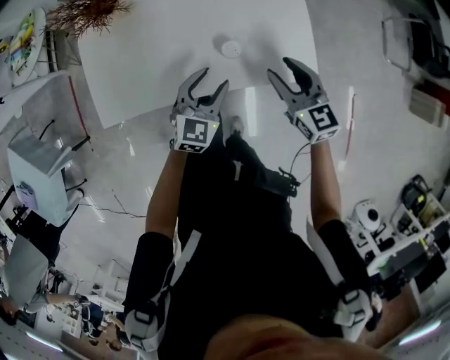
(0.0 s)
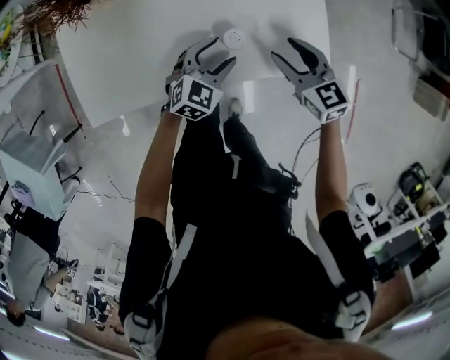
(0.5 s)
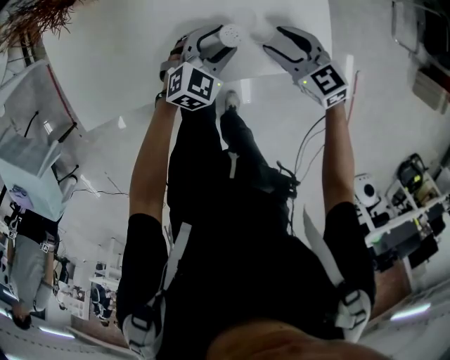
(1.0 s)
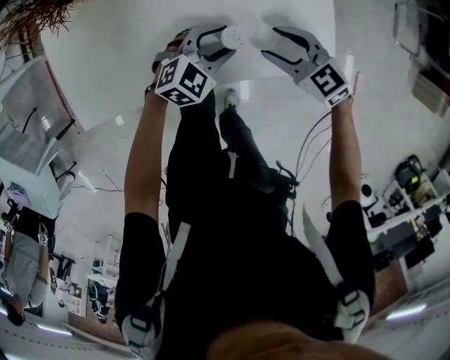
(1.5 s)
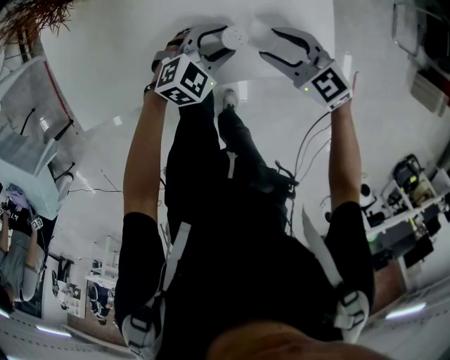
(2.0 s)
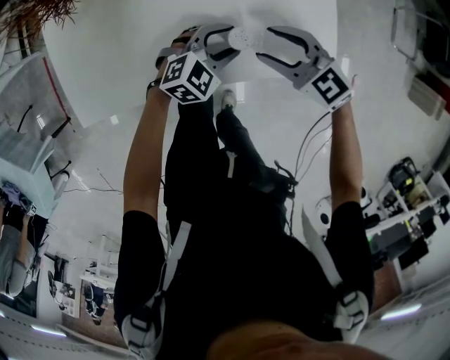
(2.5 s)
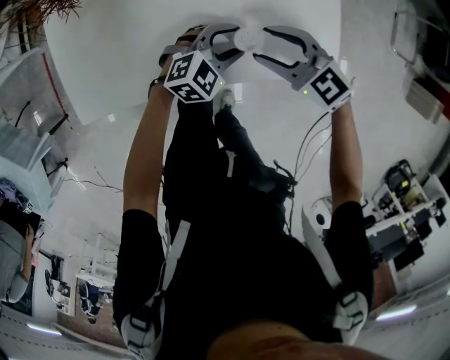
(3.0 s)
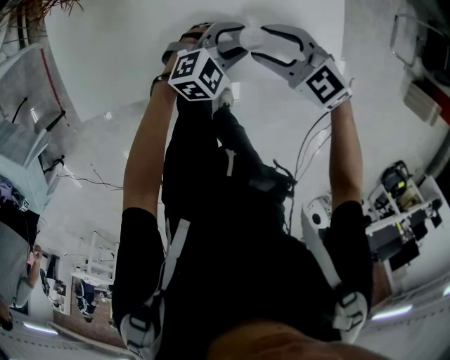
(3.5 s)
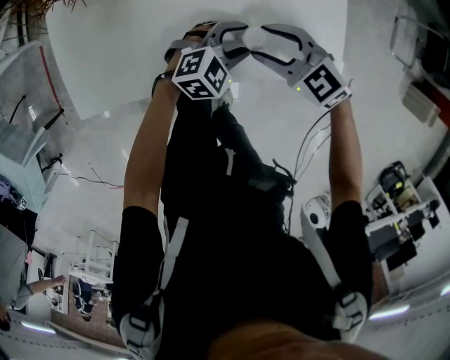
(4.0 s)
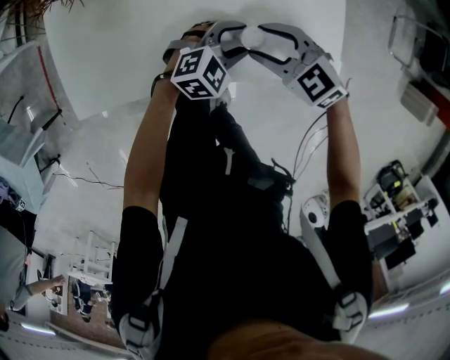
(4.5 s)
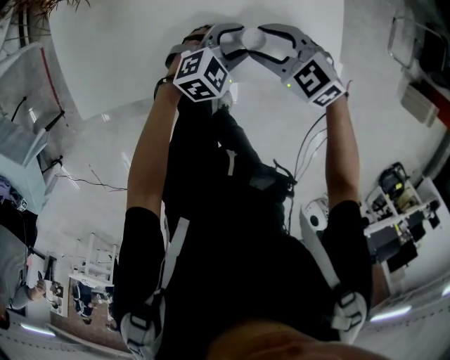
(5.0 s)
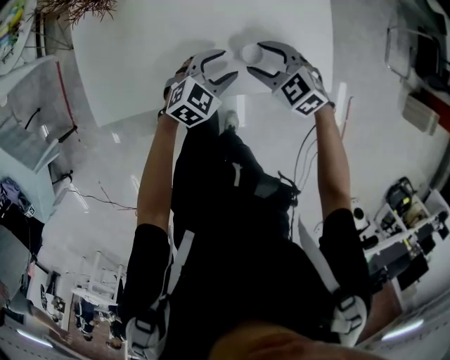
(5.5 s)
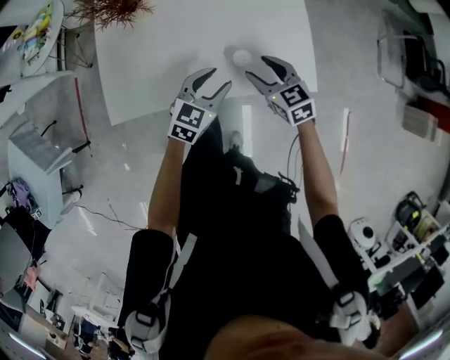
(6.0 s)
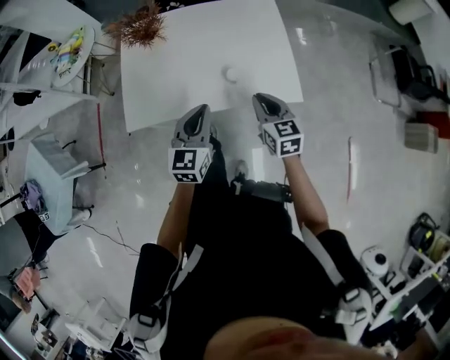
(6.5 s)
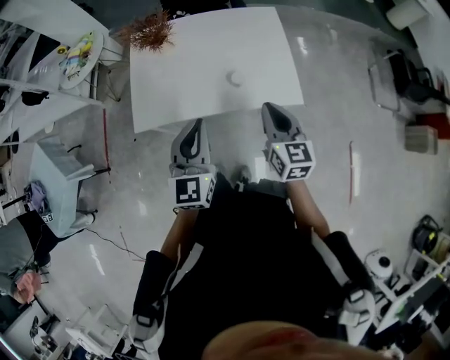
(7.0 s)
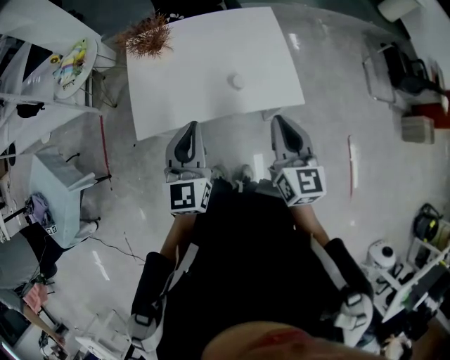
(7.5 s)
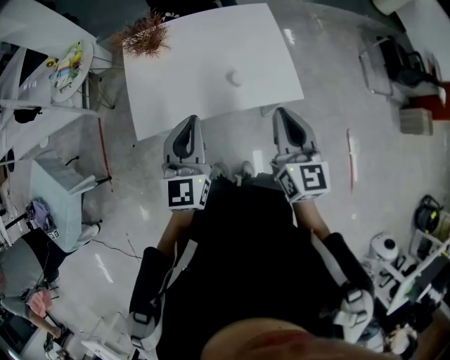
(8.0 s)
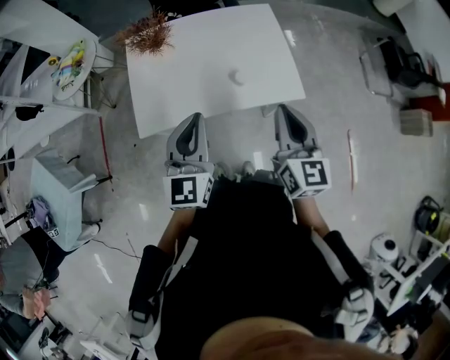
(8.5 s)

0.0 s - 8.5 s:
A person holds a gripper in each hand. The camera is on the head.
0.0 s - 2.0 s: The left gripper travels downward, forward and to the right by some 15 cm, and changes its angle by approximately 30 degrees. The right gripper moves downward, some 10 cm, and changes its angle by roughly 30 degrees.
2.0 s - 4.0 s: The right gripper changes place by some 5 cm.
4.0 s - 6.5 s: The right gripper travels upward by about 15 cm, turns by approximately 50 degrees, and closes up; the left gripper is displaced upward by approximately 25 cm, rotates about 60 degrees, and closes its fingers.
6.5 s - 8.5 s: The left gripper is displaced upward and to the left by approximately 15 cm; the right gripper moves upward and backward, about 20 cm, and turns by about 20 degrees.

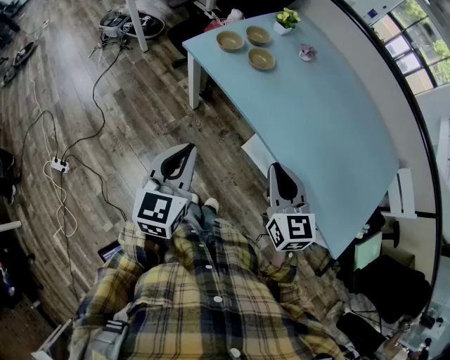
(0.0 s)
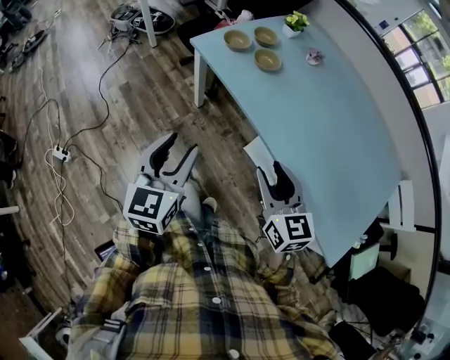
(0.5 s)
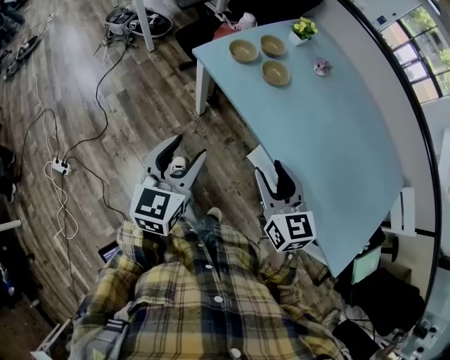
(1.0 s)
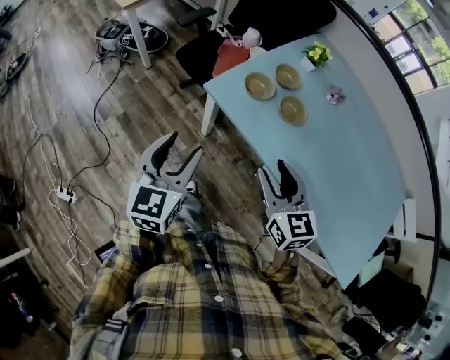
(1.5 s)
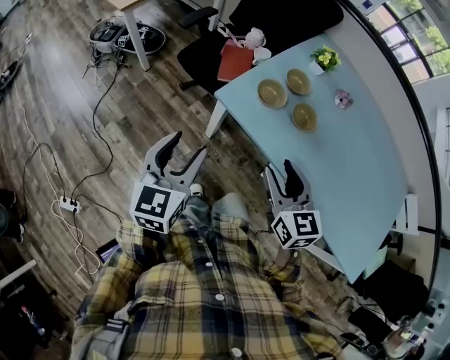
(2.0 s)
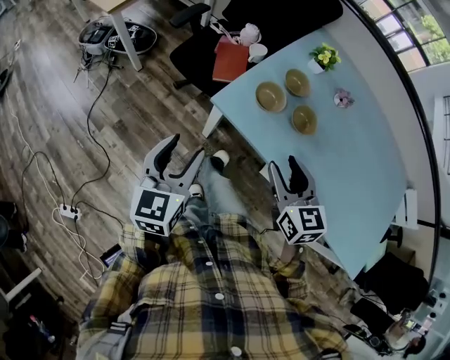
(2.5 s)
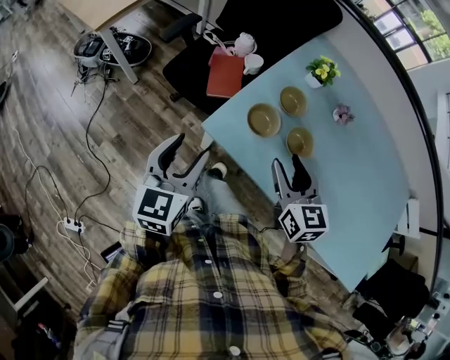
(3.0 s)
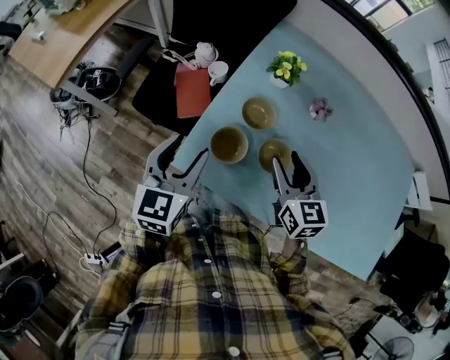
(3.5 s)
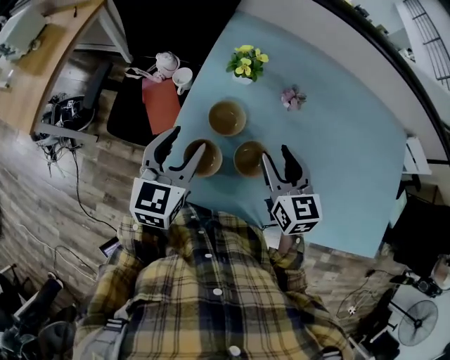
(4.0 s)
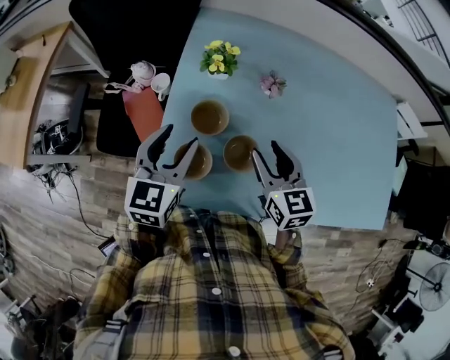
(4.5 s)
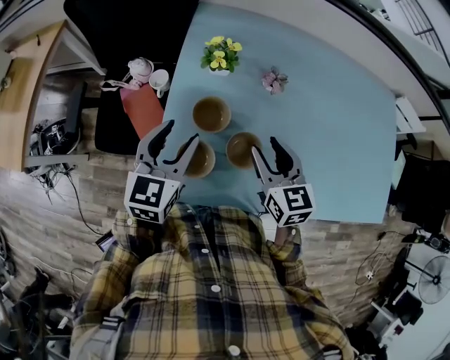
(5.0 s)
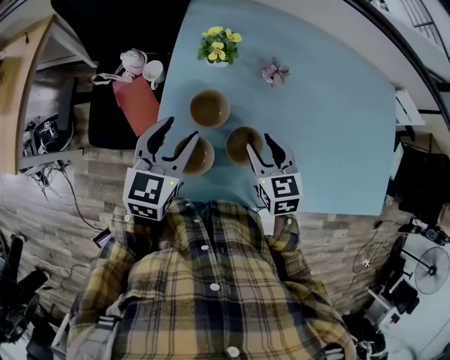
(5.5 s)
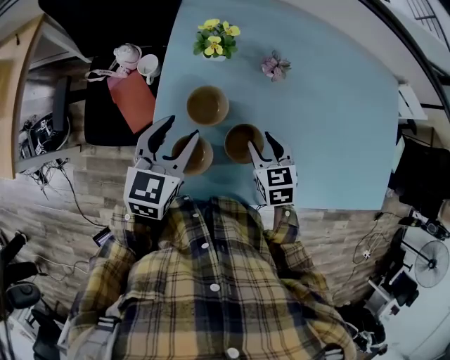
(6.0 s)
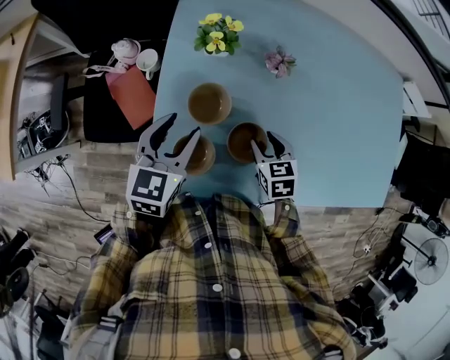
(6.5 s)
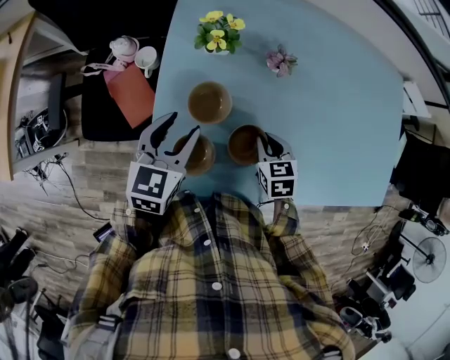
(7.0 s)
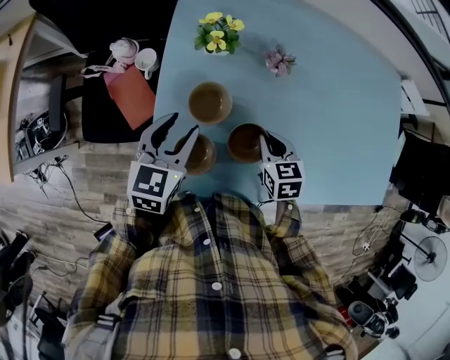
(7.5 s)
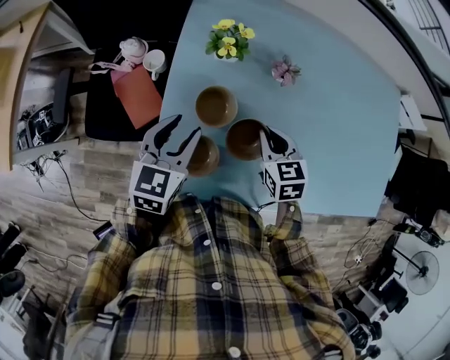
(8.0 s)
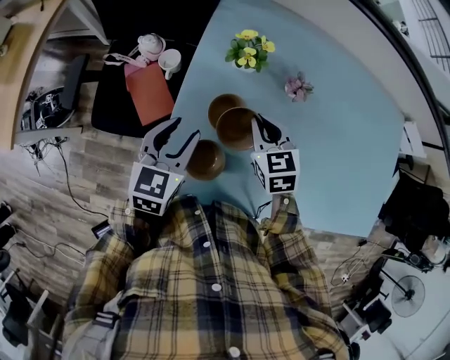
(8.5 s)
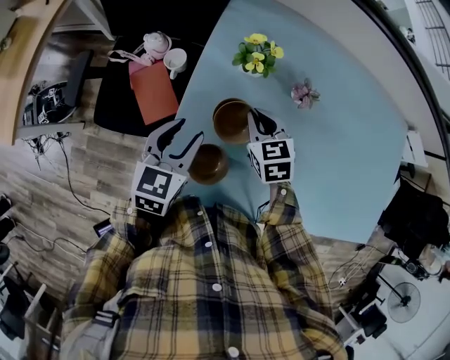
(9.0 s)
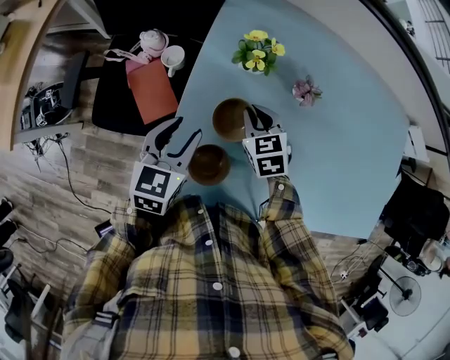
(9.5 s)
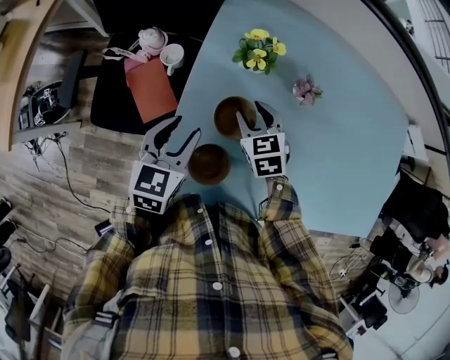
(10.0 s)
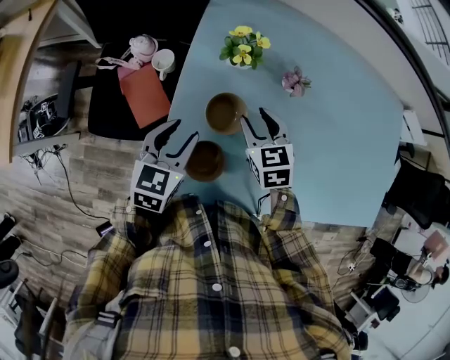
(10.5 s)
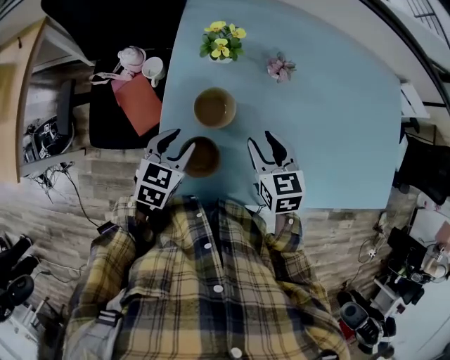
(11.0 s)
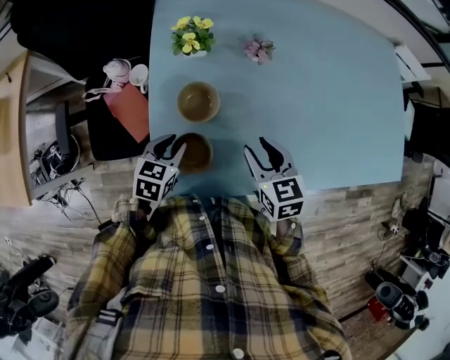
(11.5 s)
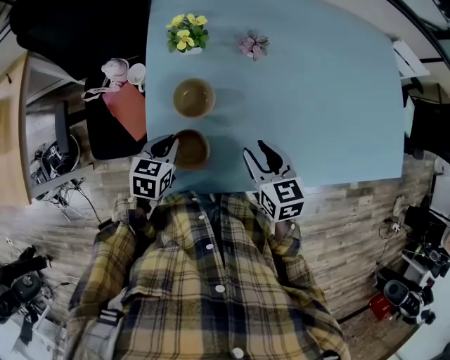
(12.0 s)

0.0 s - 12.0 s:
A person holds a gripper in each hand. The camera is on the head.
0.0 s - 2.0 s: Both grippers travel together forward and to the left, roughly 35 cm. The right gripper opens. Meanwhile the left gripper opens.
2.0 s - 4.0 s: The left gripper shifts by about 35 cm, and turns by roughly 30 degrees. The right gripper shifts by approximately 30 cm, and turns by roughly 20 degrees.
4.0 s - 6.0 s: The left gripper is displaced downward by about 5 cm, while the right gripper travels downward by some 10 cm, and rotates roughly 30 degrees.
6.0 s - 8.0 s: The right gripper closes up.
8.0 s - 10.0 s: The right gripper heads to the left and forward, covering approximately 15 cm, and opens. The left gripper moves roughly 5 cm.
10.0 s - 12.0 s: The right gripper is displaced backward and to the right by approximately 20 cm, and changes its angle by approximately 30 degrees. Meanwhile the left gripper shifts some 10 cm downward, backward and to the right, turns by approximately 20 degrees, and closes.

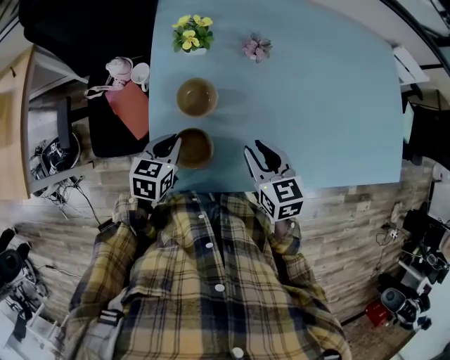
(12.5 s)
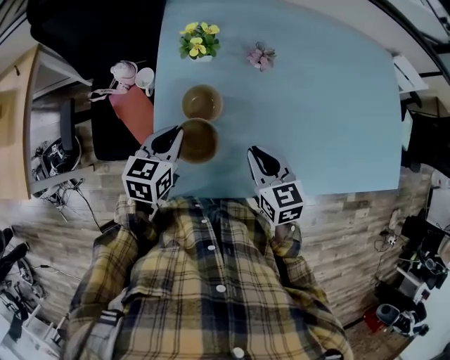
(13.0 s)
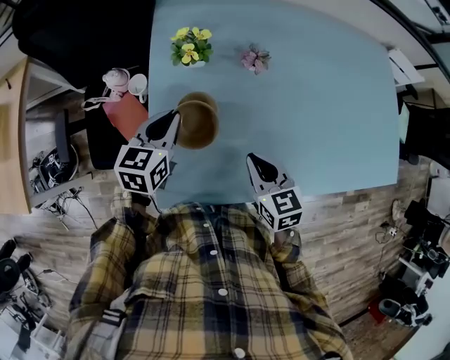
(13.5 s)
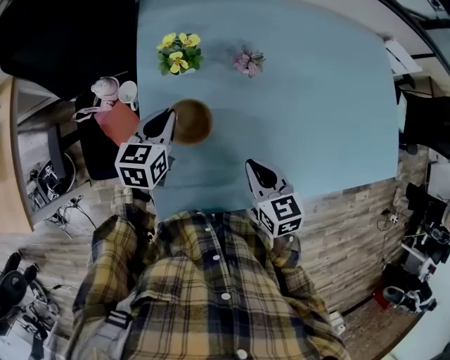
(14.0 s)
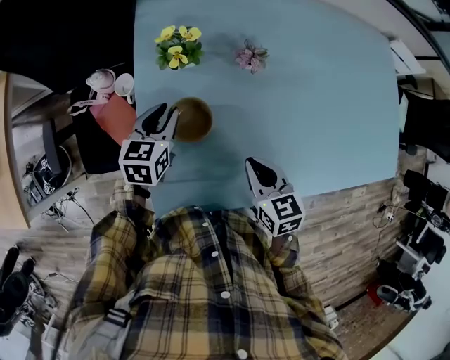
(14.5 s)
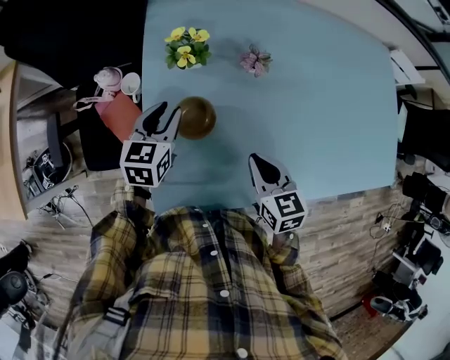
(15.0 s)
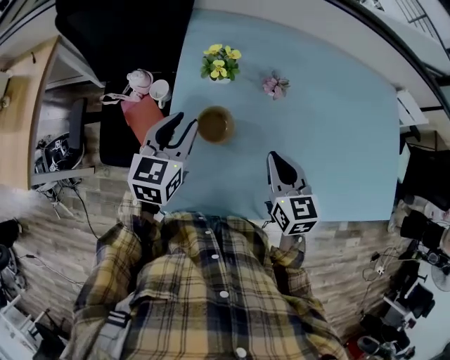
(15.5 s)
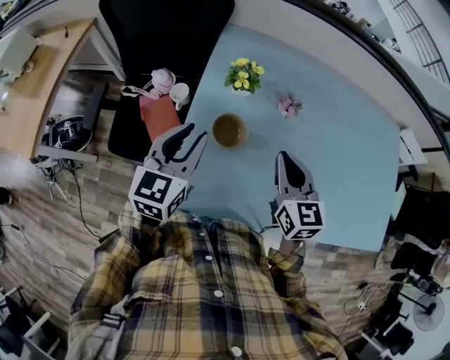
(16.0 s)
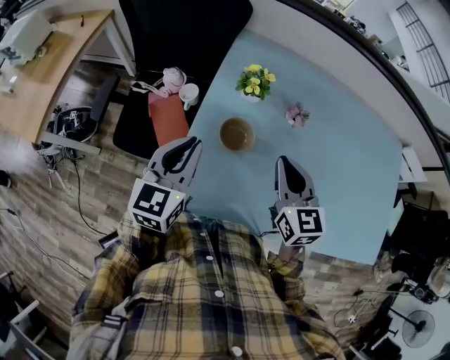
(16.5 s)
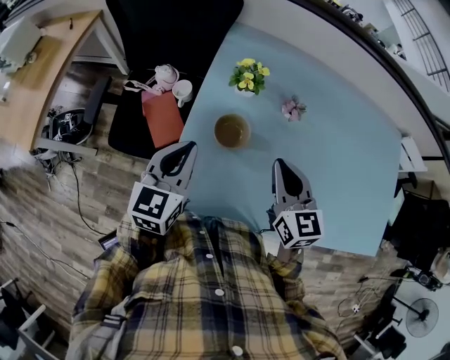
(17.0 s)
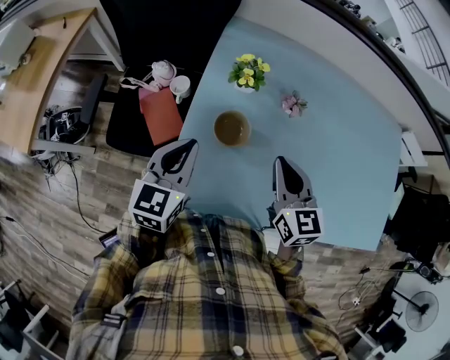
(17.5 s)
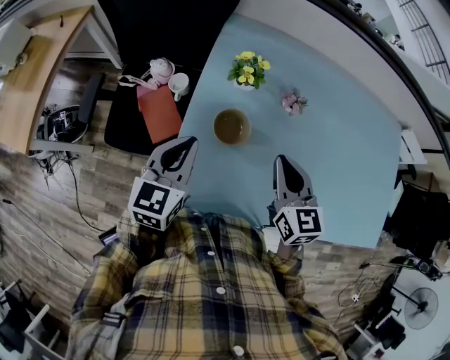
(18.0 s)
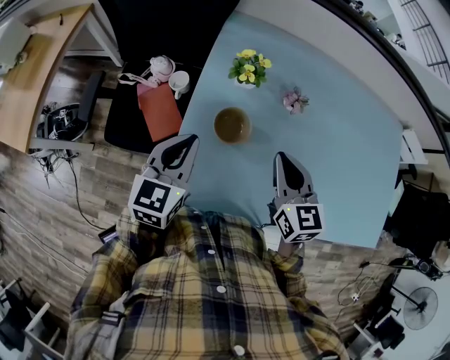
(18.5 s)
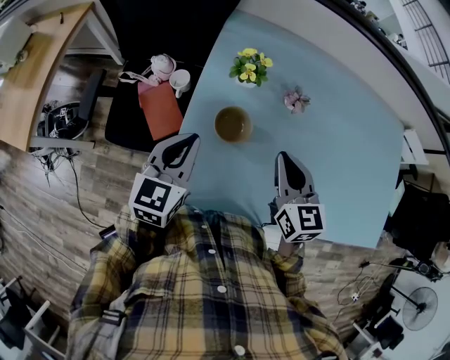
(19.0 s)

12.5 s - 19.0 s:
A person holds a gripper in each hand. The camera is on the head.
12.5 s - 14.5 s: The right gripper closes up, while the left gripper goes roughly 15 cm forward, and opens.
14.5 s - 17.0 s: The right gripper is displaced upward by some 15 cm, and swivels some 30 degrees. The left gripper shifts roughly 20 cm upward and backward, rotates about 20 degrees, and closes its fingers.
17.0 s - 19.0 s: The grippers stay close to where they were, moving slightly.
